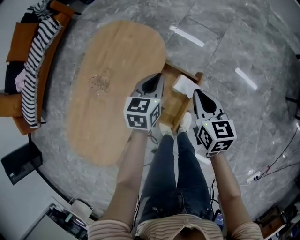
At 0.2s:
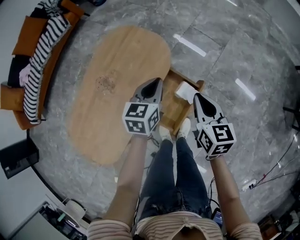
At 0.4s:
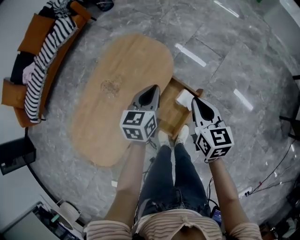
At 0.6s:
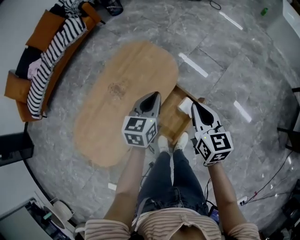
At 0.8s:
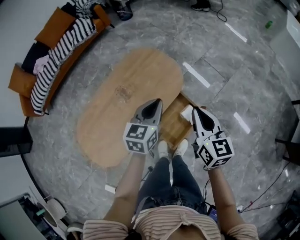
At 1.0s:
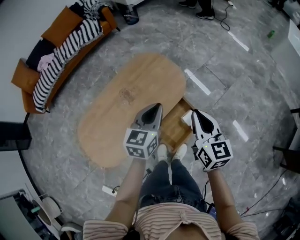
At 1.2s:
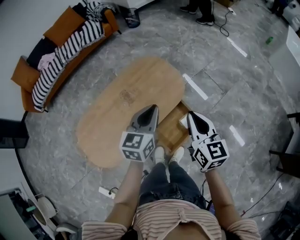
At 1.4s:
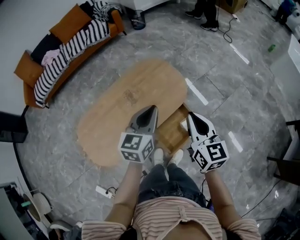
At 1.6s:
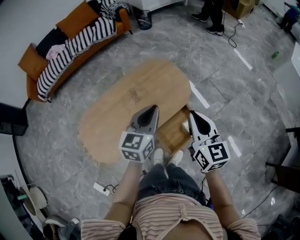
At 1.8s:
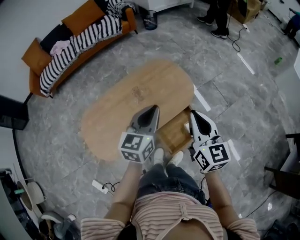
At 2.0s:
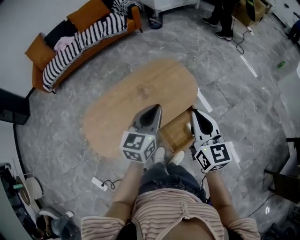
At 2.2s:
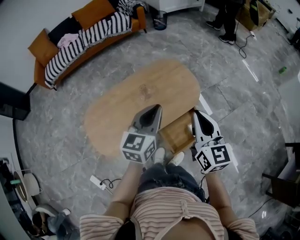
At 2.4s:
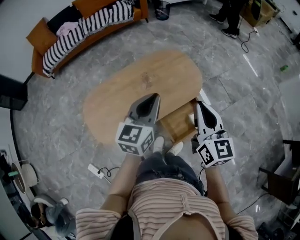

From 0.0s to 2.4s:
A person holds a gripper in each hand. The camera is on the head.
From 0.0s to 1.2s: The two grippers go some 25 cm upward and to the left. The right gripper rotates roughly 30 degrees, while the left gripper changes its angle by about 20 degrees.
From 1.2s to 2.4s: The left gripper is displaced to the left and upward by about 15 cm; the right gripper travels upward and to the left by roughly 10 cm.

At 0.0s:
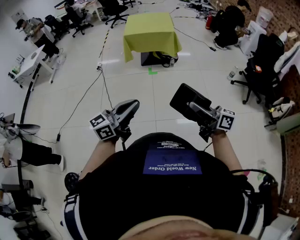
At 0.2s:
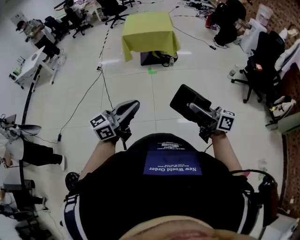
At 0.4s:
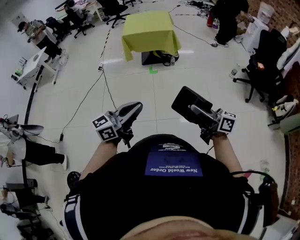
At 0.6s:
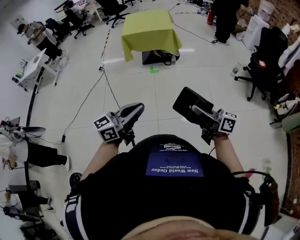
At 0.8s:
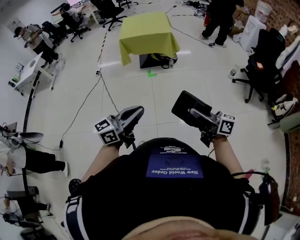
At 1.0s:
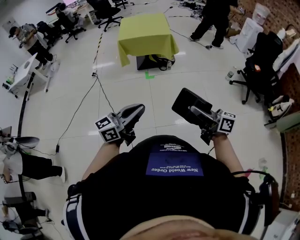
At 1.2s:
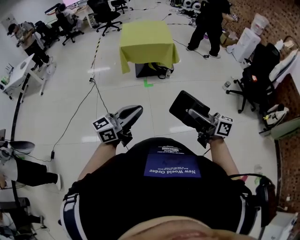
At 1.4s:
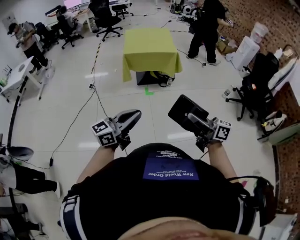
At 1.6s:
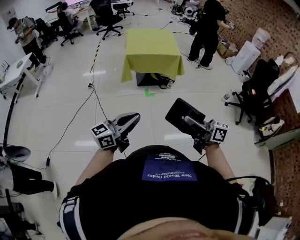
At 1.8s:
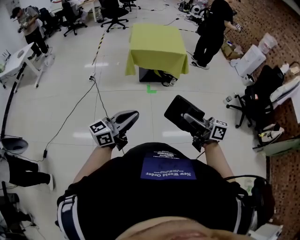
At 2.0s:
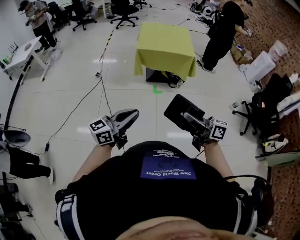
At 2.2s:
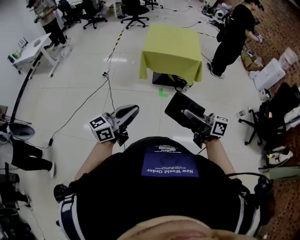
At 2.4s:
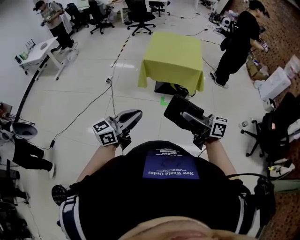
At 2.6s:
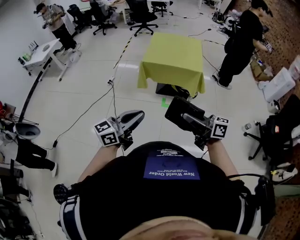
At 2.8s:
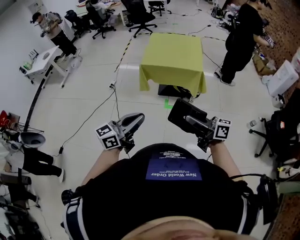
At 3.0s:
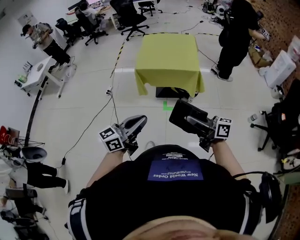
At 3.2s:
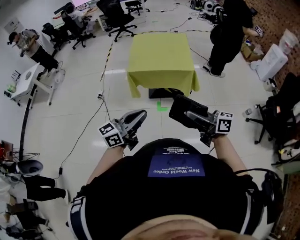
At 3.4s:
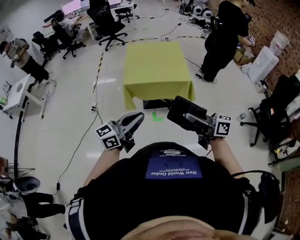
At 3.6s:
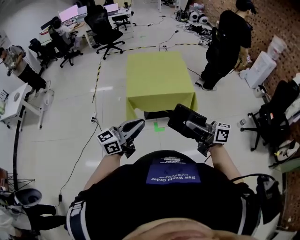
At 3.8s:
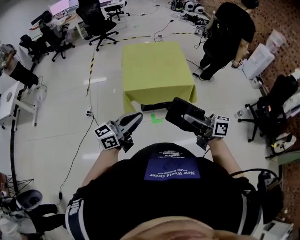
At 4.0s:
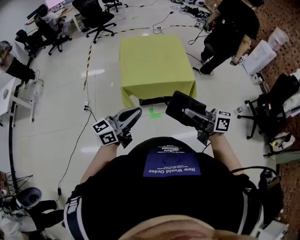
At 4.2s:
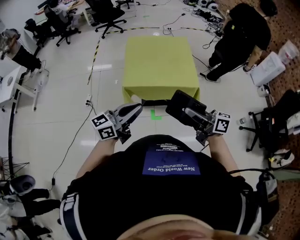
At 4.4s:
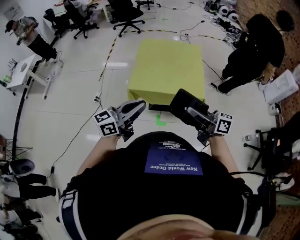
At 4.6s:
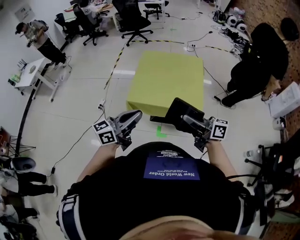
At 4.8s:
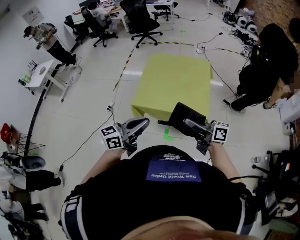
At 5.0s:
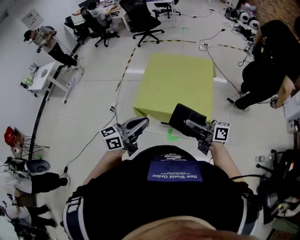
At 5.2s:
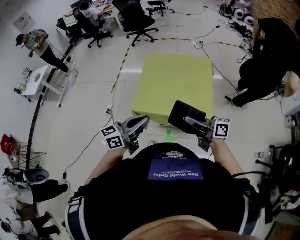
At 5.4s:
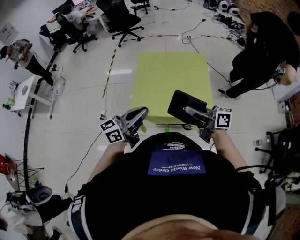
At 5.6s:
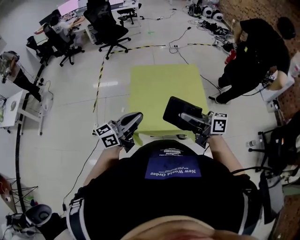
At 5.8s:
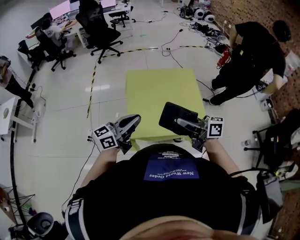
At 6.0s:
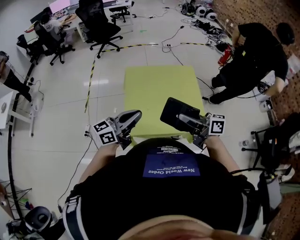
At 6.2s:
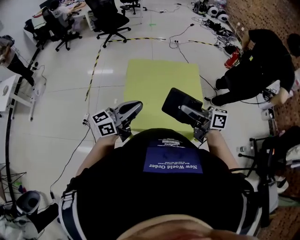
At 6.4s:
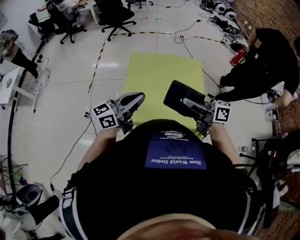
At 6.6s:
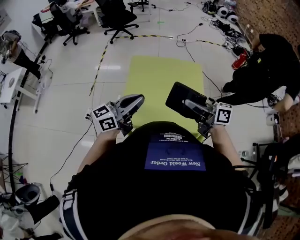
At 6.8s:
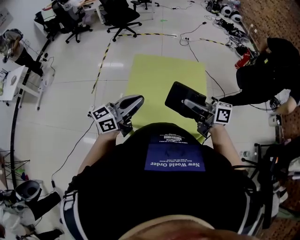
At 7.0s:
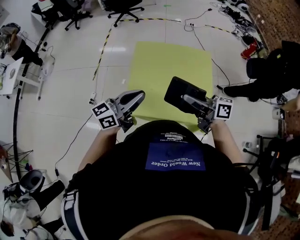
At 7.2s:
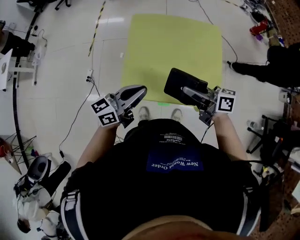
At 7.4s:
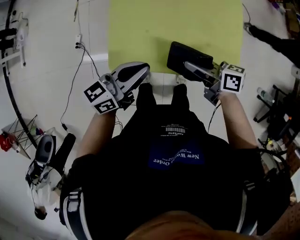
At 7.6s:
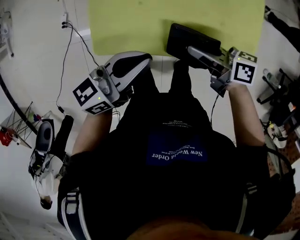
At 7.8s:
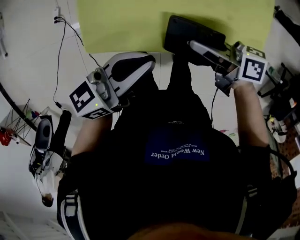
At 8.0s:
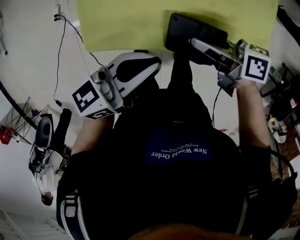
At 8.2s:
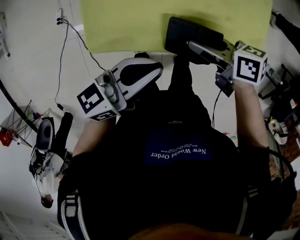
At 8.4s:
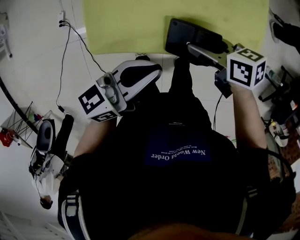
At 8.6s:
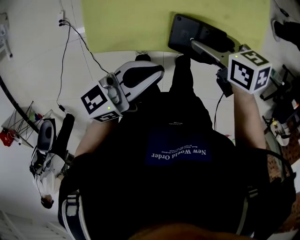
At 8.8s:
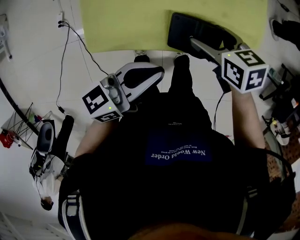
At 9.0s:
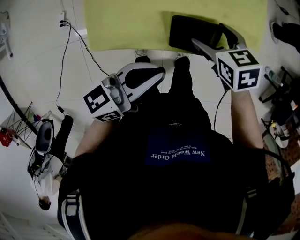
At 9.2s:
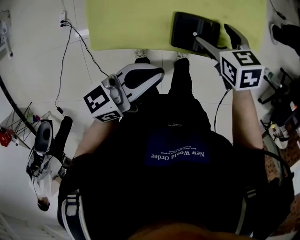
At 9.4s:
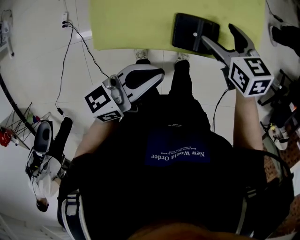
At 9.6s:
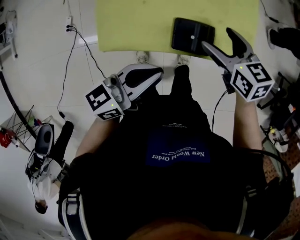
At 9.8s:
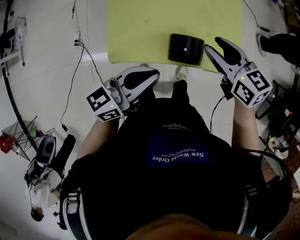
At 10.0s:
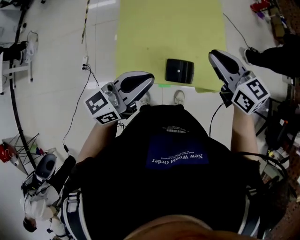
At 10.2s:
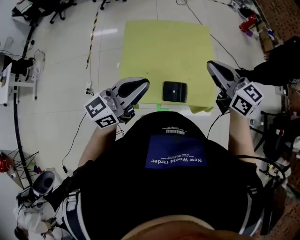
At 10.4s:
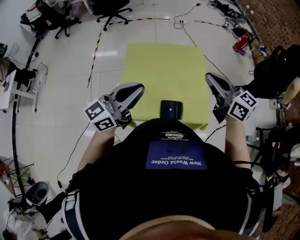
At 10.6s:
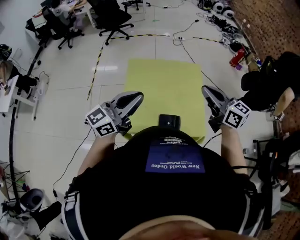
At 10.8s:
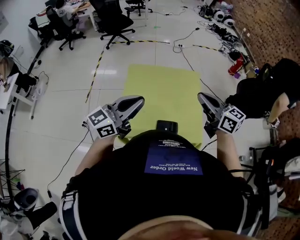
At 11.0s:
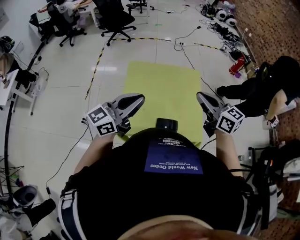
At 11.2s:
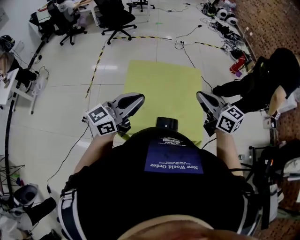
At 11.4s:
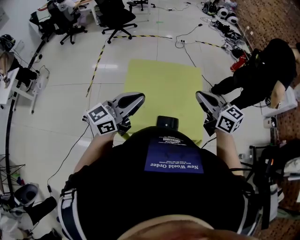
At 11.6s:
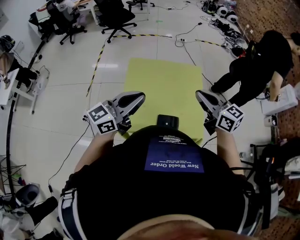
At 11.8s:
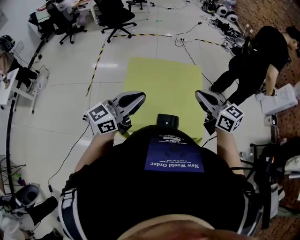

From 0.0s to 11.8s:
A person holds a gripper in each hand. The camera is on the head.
From 0.0s to 1.4s: The grippers both shift forward and to the left by roughly 25 cm.
From 1.4s to 3.0s: The two grippers go approximately 35 cm forward.
From 3.0s to 4.4s: Both grippers travel together forward, some 35 cm.
From 4.4s to 6.0s: The two grippers go approximately 25 cm forward.
From 6.0s to 7.4s: The left gripper travels downward and to the right by roughly 20 cm, and turns by some 20 degrees; the right gripper is displaced downward by about 25 cm, and rotates roughly 30 degrees.
From 7.4s to 8.8s: The left gripper moves roughly 10 cm. The right gripper is displaced downward by about 10 cm, tips its fingers downward by roughly 30 degrees, and opens up.
From 8.8s to 10.4s: The two grippers go approximately 35 cm upward. The left gripper rotates about 40 degrees; the right gripper tips its fingers upward by about 50 degrees, and closes up.
From 10.4s to 11.8s: The grippers move only a little.

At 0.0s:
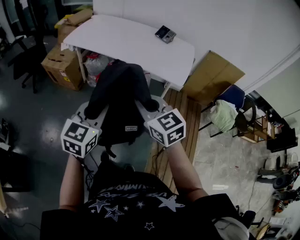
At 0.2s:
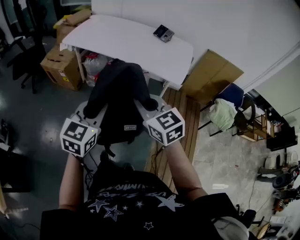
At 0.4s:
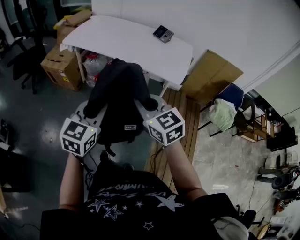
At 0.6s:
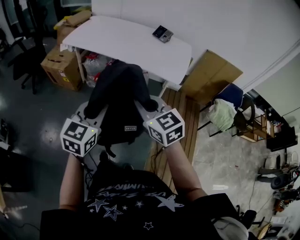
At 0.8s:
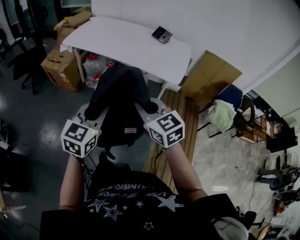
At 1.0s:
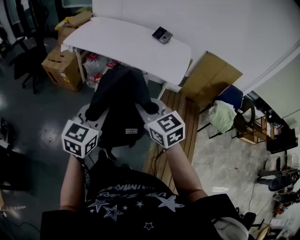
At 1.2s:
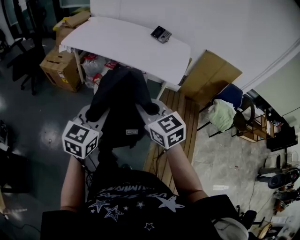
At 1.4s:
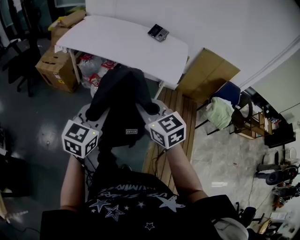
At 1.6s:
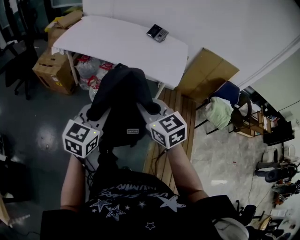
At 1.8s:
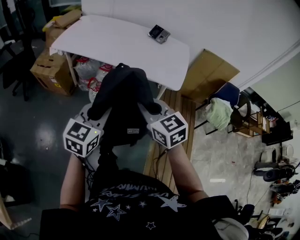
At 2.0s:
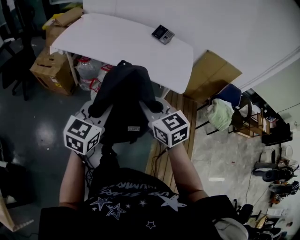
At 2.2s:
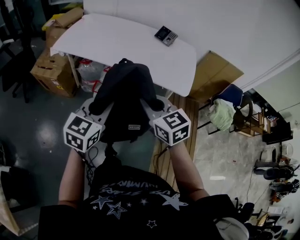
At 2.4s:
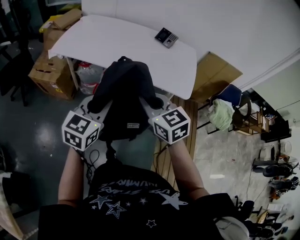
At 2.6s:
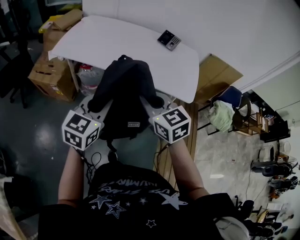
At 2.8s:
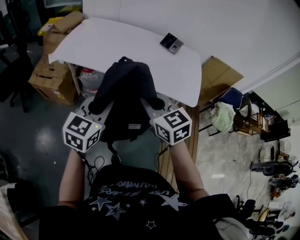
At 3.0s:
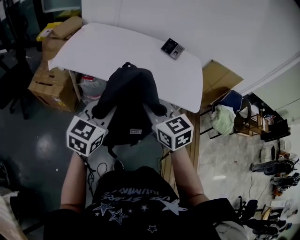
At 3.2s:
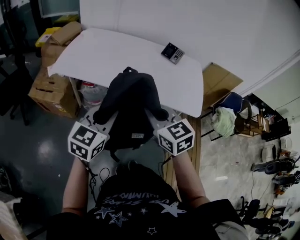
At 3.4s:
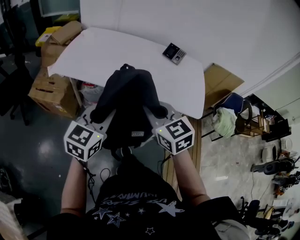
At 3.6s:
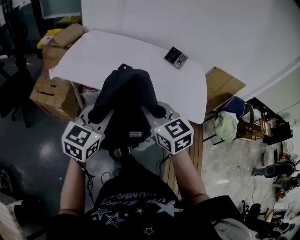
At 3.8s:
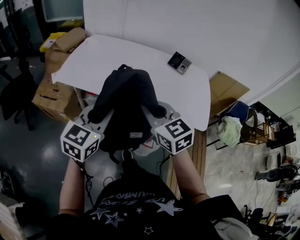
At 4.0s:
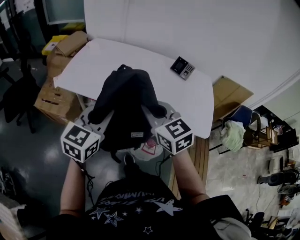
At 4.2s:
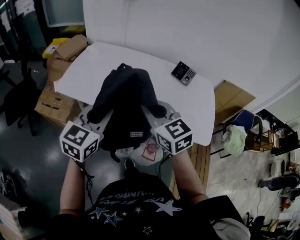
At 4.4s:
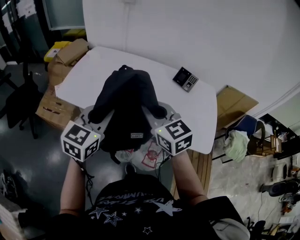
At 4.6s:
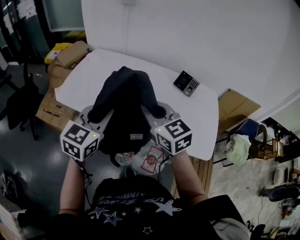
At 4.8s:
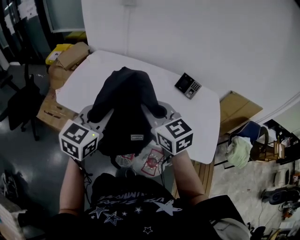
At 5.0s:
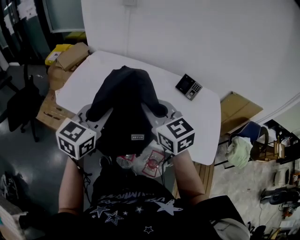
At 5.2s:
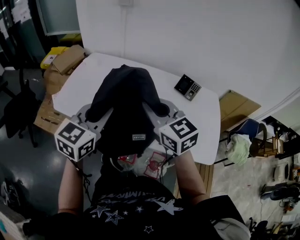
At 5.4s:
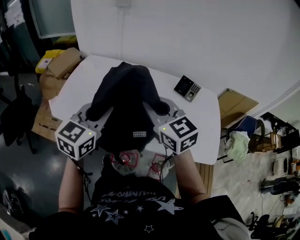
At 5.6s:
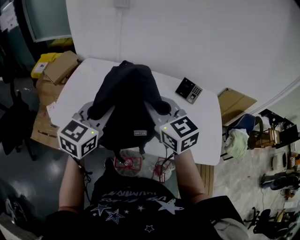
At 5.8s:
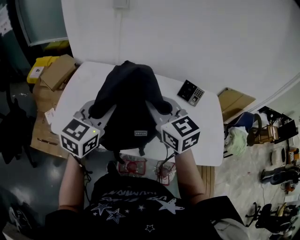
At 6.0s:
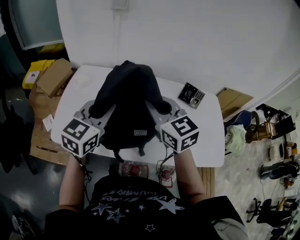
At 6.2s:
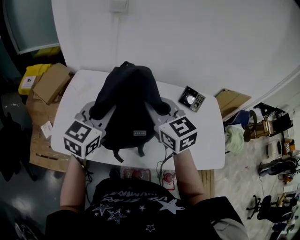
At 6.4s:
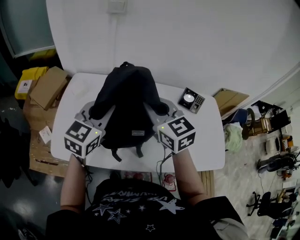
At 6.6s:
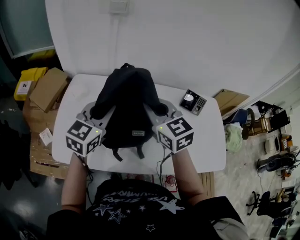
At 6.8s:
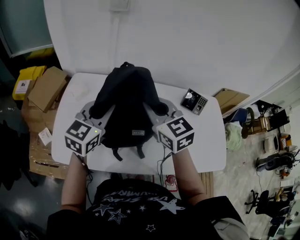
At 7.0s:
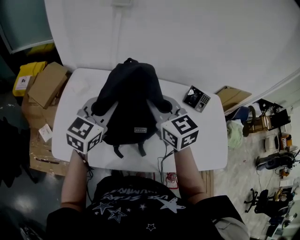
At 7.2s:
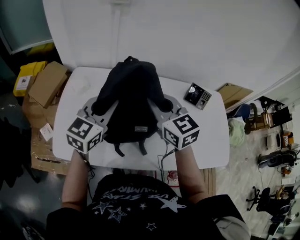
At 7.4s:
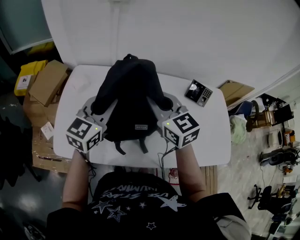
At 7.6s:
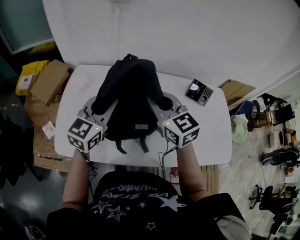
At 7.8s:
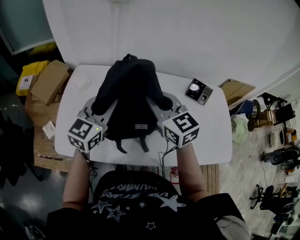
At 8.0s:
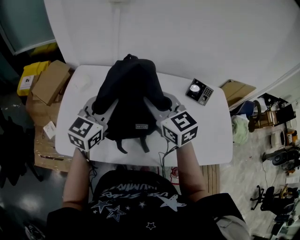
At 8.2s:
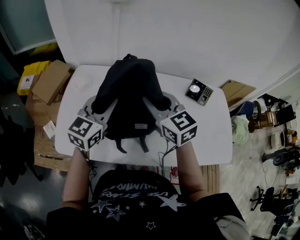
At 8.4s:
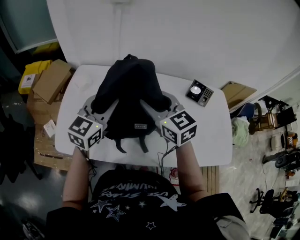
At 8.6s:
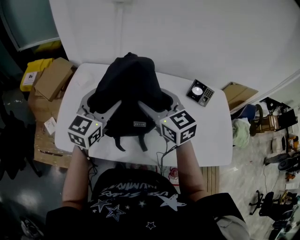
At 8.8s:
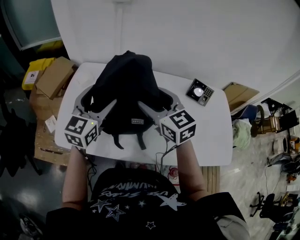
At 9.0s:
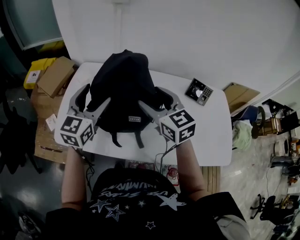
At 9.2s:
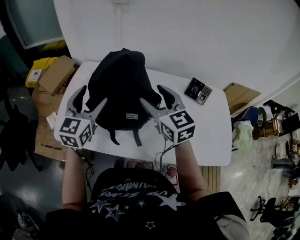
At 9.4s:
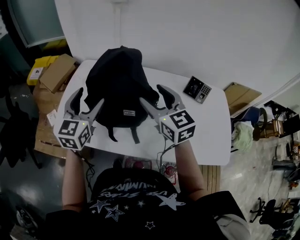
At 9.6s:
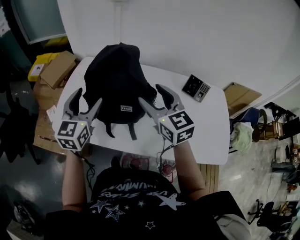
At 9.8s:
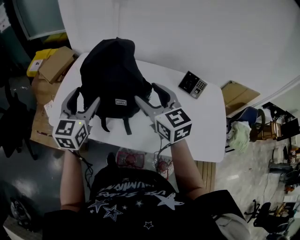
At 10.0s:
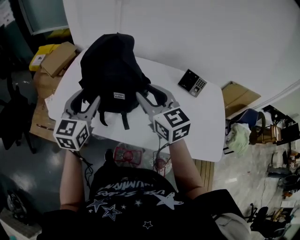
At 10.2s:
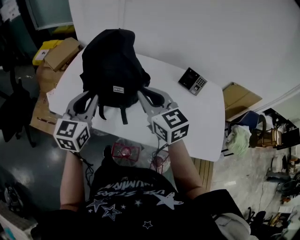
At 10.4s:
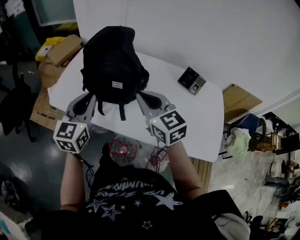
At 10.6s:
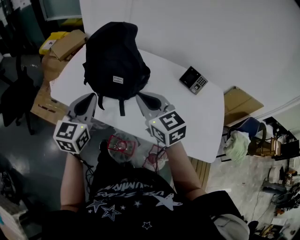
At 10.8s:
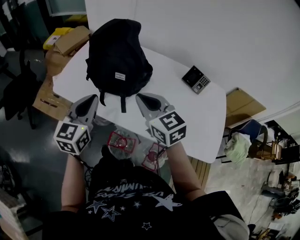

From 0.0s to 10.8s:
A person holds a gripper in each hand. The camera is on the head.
From 0.0s to 1.6s: The left gripper shifts by roughly 5 cm.
From 1.6s to 3.0s: The grippers both shift forward and to the left by about 30 cm.
From 3.0s to 4.6s: Both grippers move forward, some 25 cm.
From 4.6s to 6.2s: Both grippers travel together forward and to the left, roughly 25 cm.
From 6.2s to 7.8s: The right gripper travels forward by about 5 cm. The left gripper moves forward and downward, some 10 cm.
From 7.8s to 9.2s: The right gripper moves some 5 cm, and opens; the left gripper ends up about 5 cm from where it was, and opens.
From 9.2s to 10.8s: Both grippers move backward, about 20 cm. The right gripper swivels roughly 20 degrees, and closes up; the left gripper closes up.
